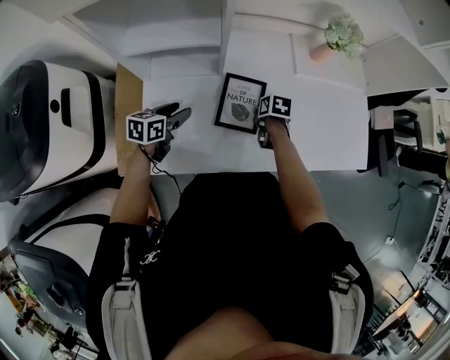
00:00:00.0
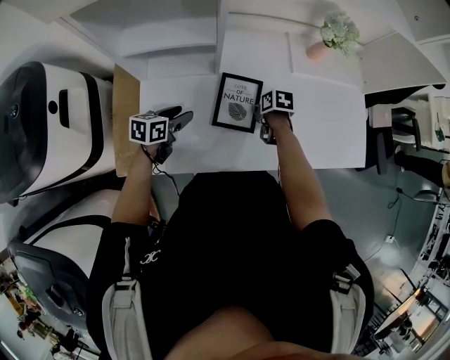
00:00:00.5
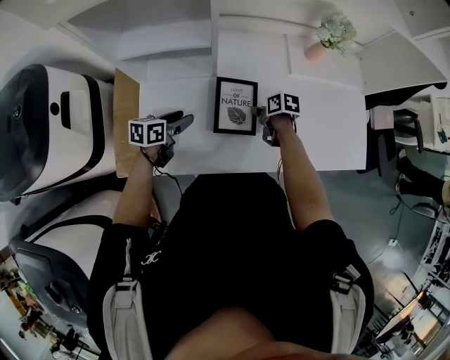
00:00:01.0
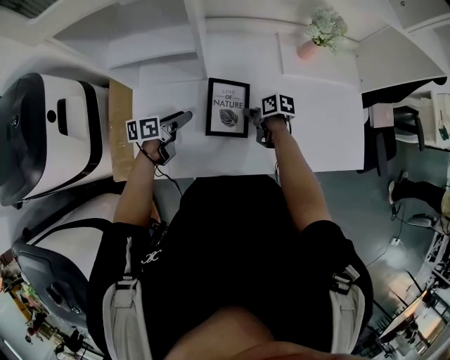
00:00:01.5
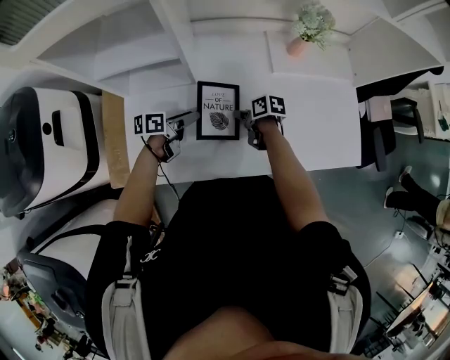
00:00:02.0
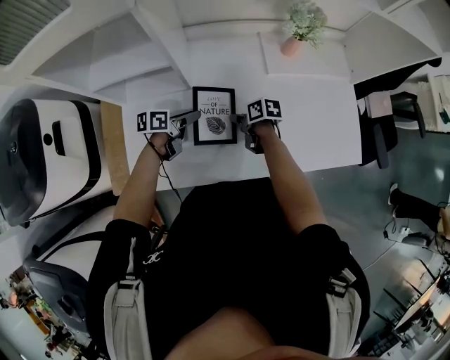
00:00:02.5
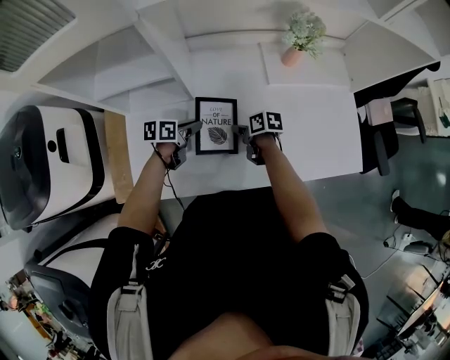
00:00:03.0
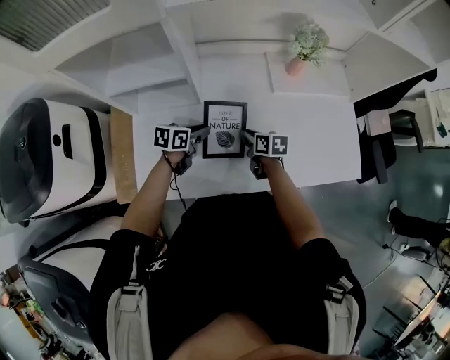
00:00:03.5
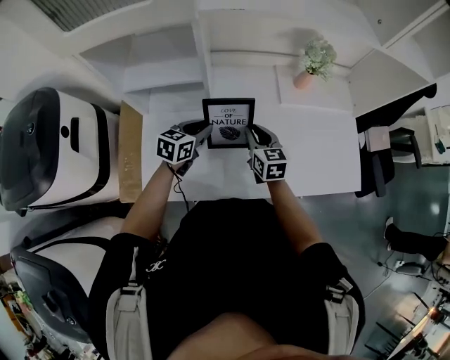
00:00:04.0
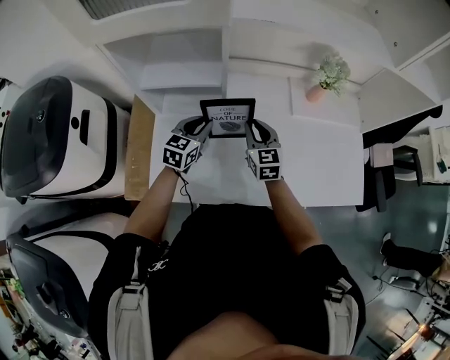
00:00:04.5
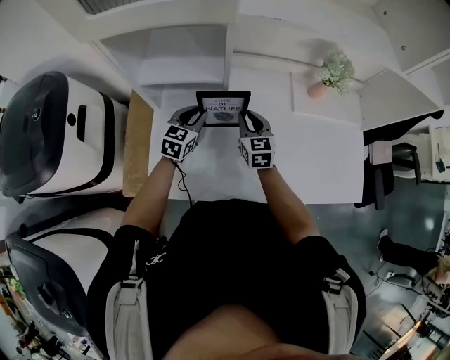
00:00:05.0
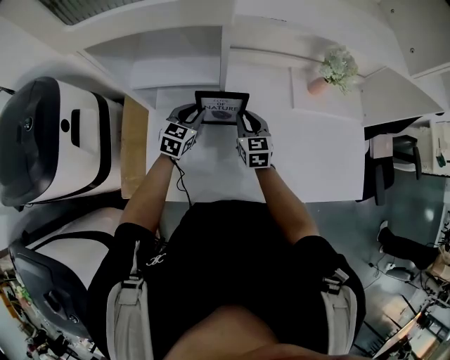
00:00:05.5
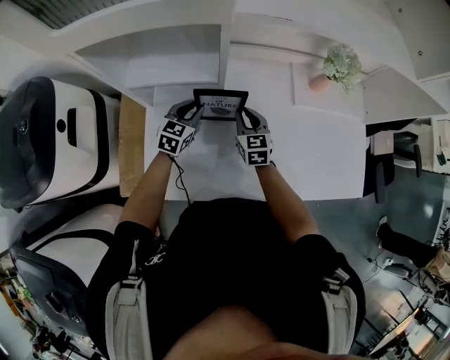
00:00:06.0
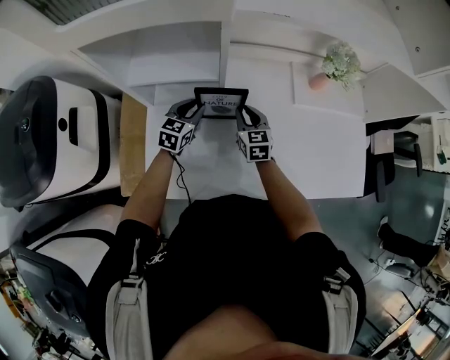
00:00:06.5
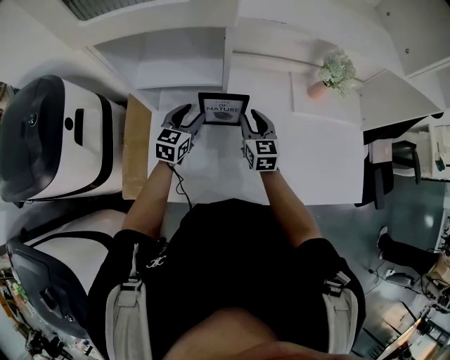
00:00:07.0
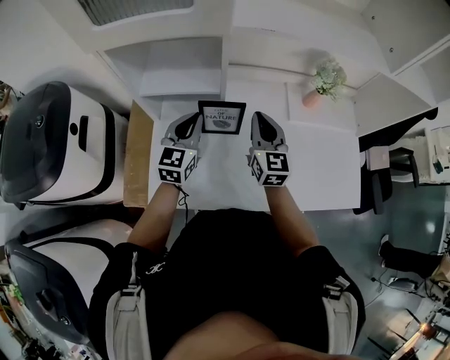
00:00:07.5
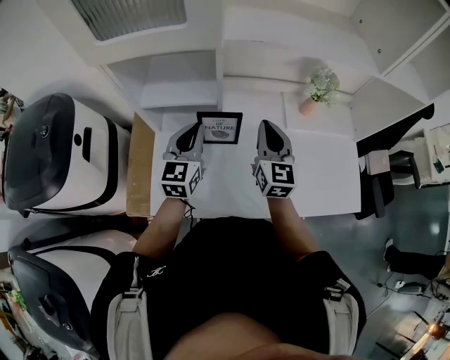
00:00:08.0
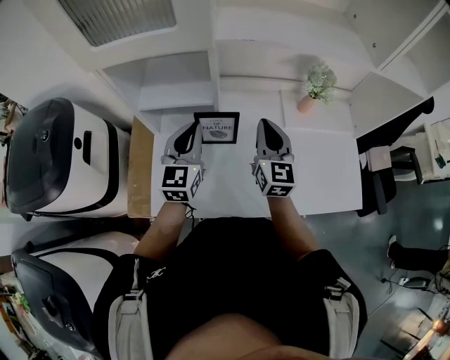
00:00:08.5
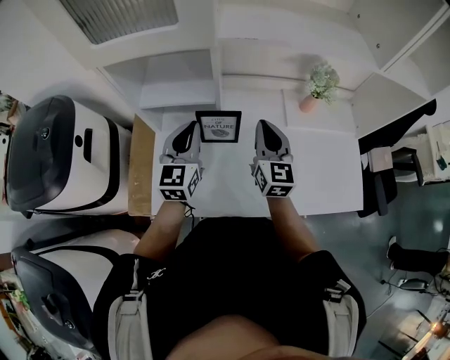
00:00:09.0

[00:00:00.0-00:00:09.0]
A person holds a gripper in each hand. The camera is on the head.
00:00:00.0 to 00:00:02.0: The right gripper changes its angle by approximately 30 degrees. The left gripper shifts some 10 cm to the right, and changes its angle by roughly 30 degrees.
00:00:02.0 to 00:00:04.5: The right gripper travels upward by roughly 15 cm, and rotates roughly 70 degrees, while the left gripper shifts some 10 cm upward, rolls clockwise, seen from behind, by some 50 degrees, and closes.
00:00:04.5 to 00:00:07.0: The left gripper opens.
00:00:07.0 to 00:00:09.0: The two grippers go roughly 15 cm upward. The left gripper swivels about 20 degrees, and closes. Meanwhile the right gripper closes its fingers.

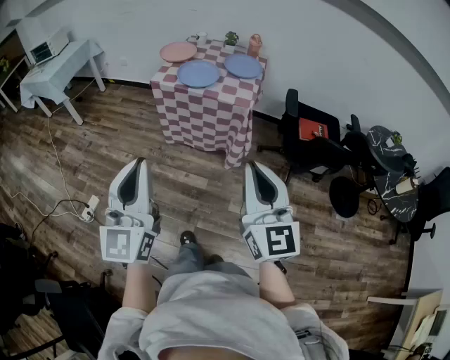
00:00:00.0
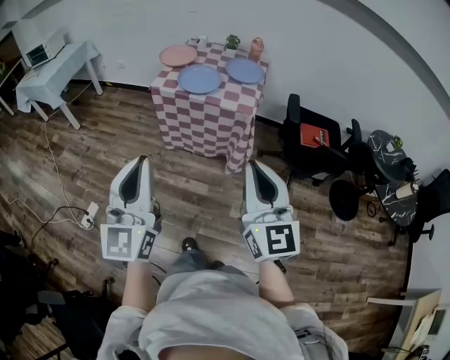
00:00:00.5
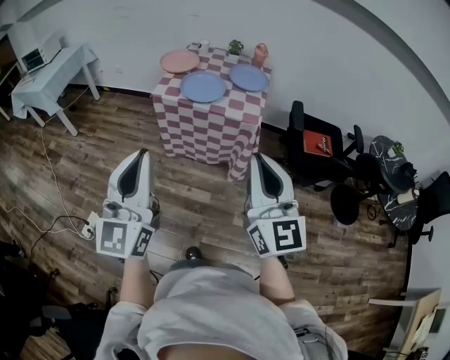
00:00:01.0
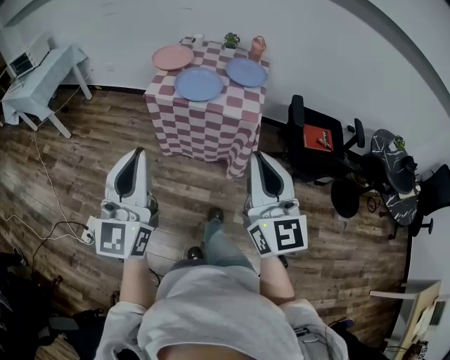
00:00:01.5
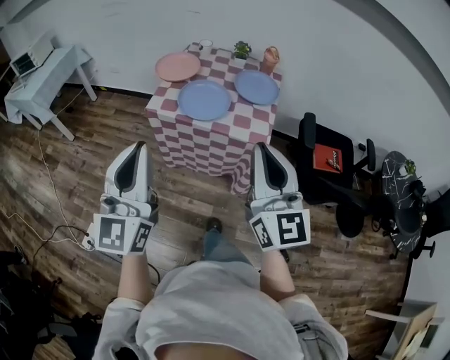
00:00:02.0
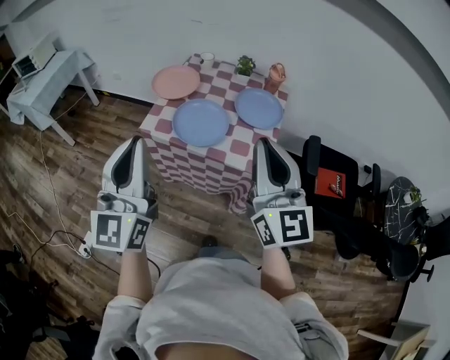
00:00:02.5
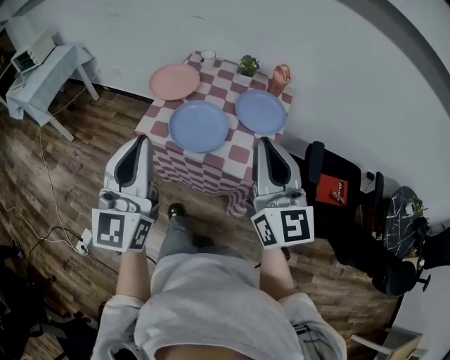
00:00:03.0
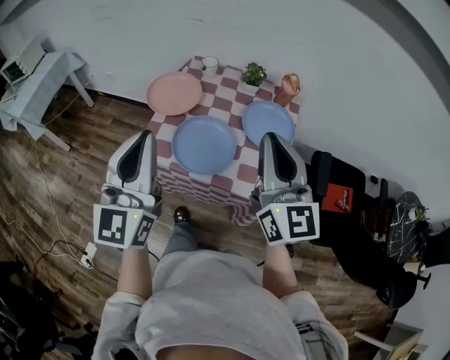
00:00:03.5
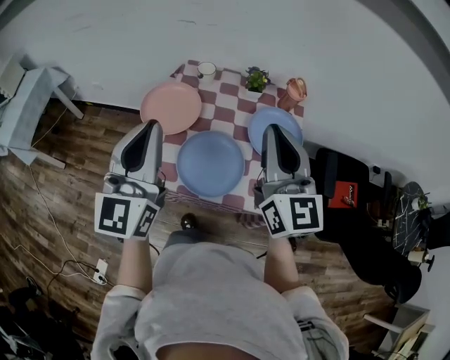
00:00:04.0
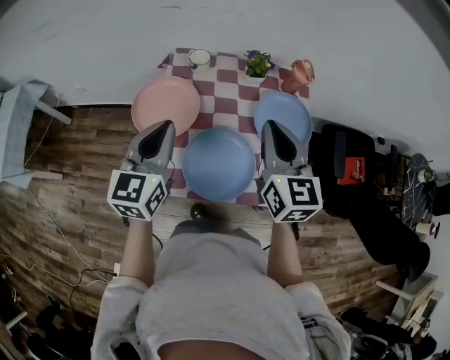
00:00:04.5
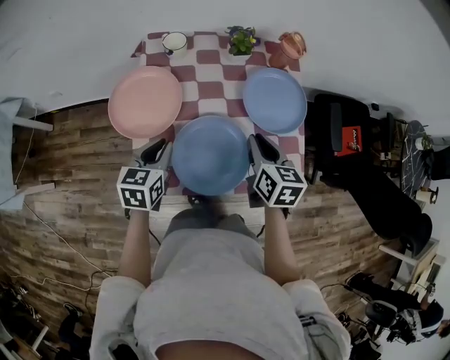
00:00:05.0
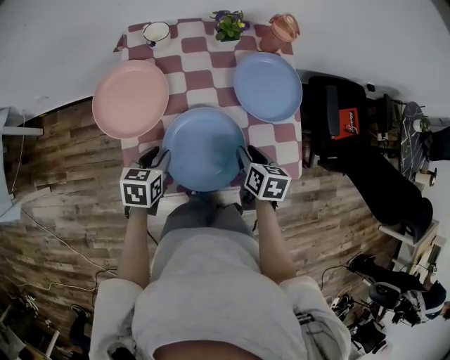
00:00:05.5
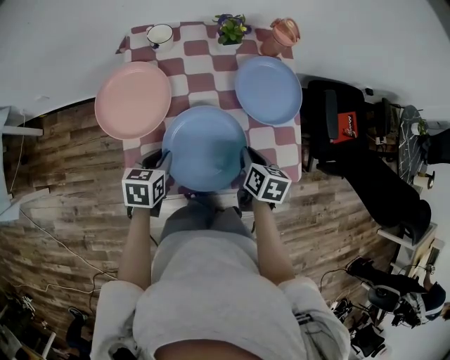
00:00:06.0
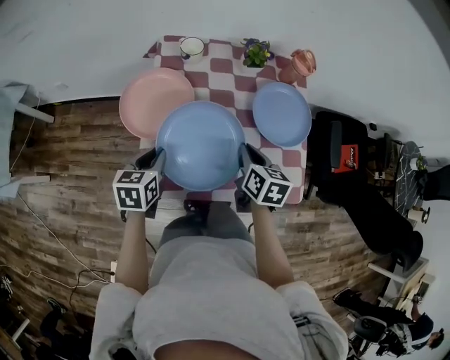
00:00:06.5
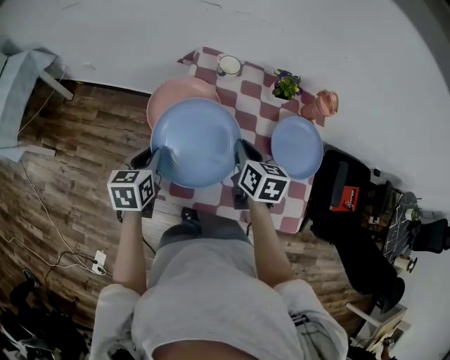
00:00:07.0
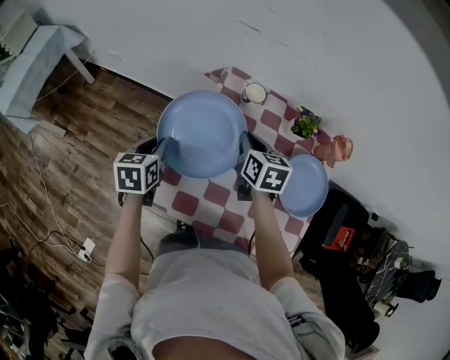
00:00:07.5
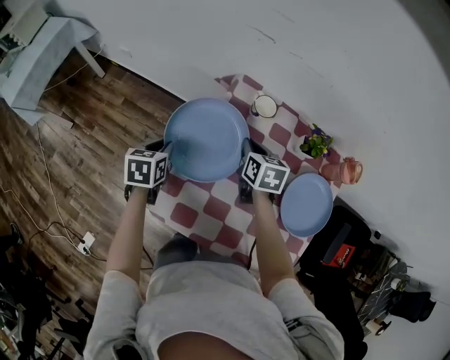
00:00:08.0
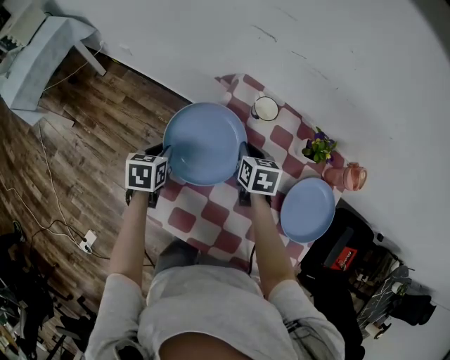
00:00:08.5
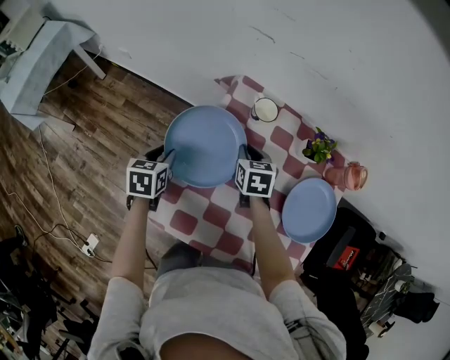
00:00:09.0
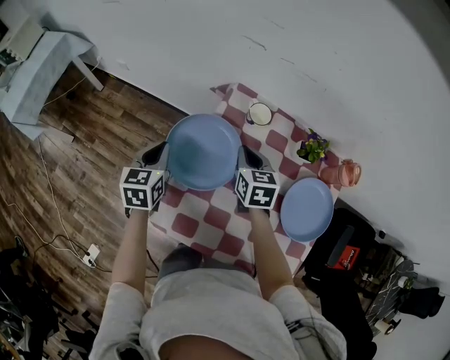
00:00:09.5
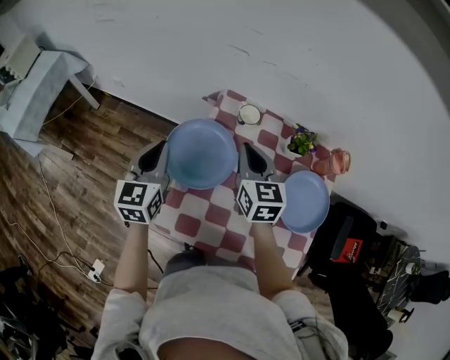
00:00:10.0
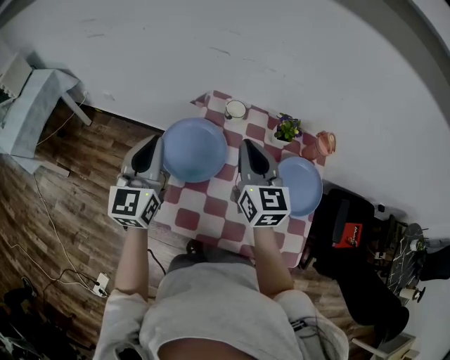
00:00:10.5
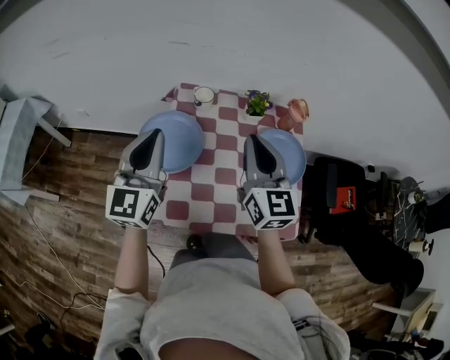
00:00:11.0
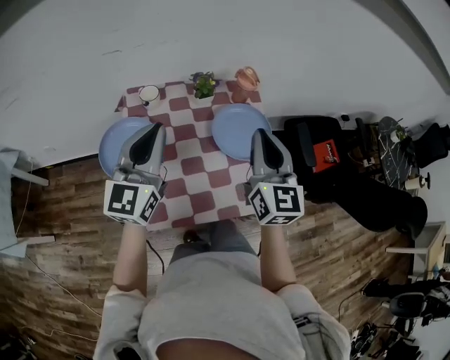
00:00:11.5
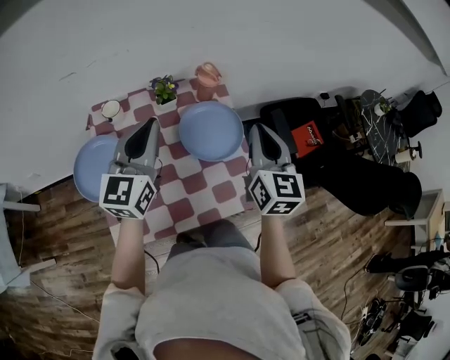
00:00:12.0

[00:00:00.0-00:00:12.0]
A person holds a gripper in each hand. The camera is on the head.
00:00:00.0 to 00:00:02.0: The two grippers go approximately 30 cm forward.
00:00:02.0 to 00:00:04.0: Both grippers travel together forward, roughly 40 cm.
00:00:04.0 to 00:00:06.0: Both grippers move downward, roughly 40 cm. The right gripper points its fingers roughly 50 degrees further downward, and opens, then closes once more; the left gripper points its fingers approximately 60 degrees further downward.
00:00:06.0 to 00:00:08.0: The left gripper shifts by about 25 cm, and swivels some 30 degrees; the right gripper ends up approximately 35 cm from where it was, and rotates roughly 40 degrees.
00:00:08.0 to 00:00:10.0: Both grippers move upward, some 15 cm. The right gripper turns by some 30 degrees; the left gripper angles its fingers upward, by approximately 30 degrees.
00:00:10.0 to 00:00:12.0: The left gripper ends up roughly 35 cm from where it was, and changes its angle by approximately 40 degrees, while the right gripper ends up approximately 40 cm from where it was, and rotates roughly 40 degrees.

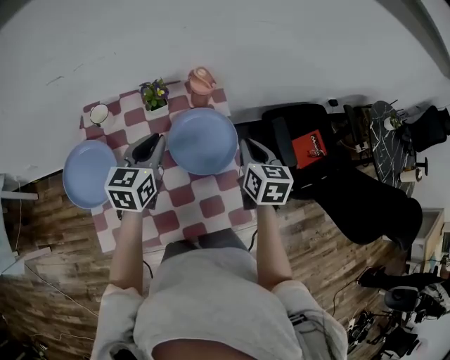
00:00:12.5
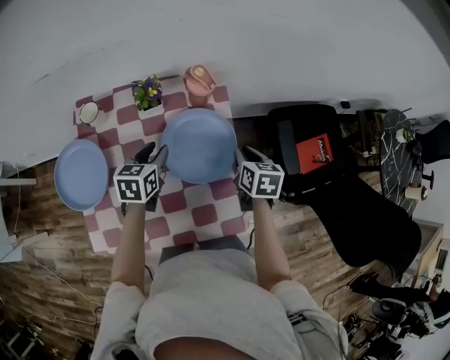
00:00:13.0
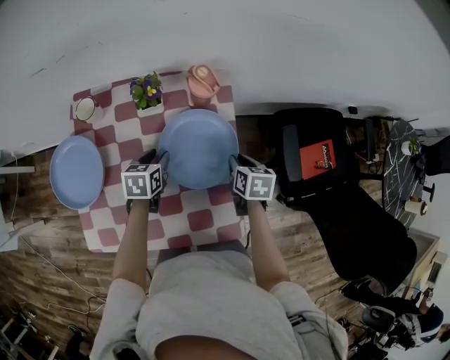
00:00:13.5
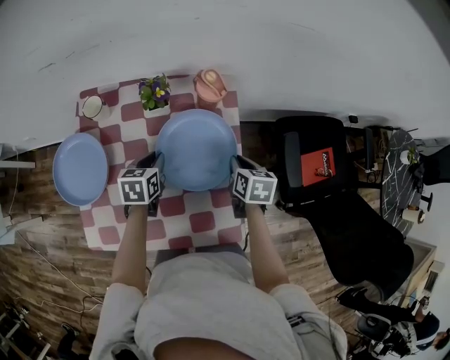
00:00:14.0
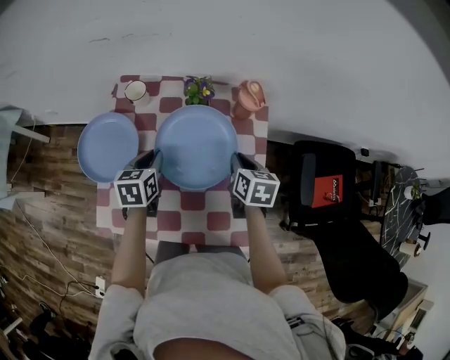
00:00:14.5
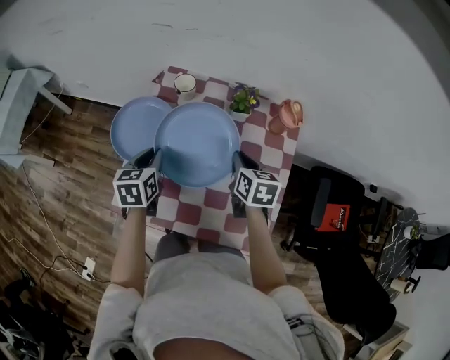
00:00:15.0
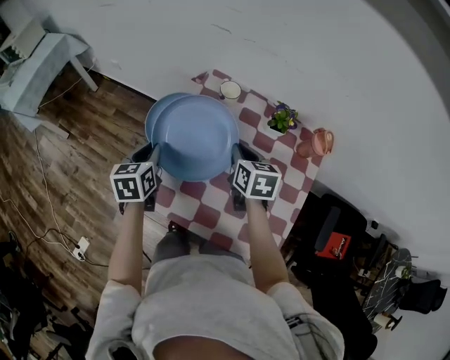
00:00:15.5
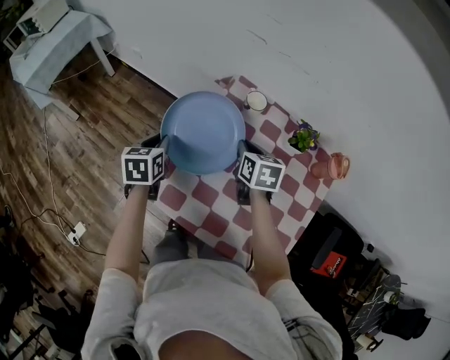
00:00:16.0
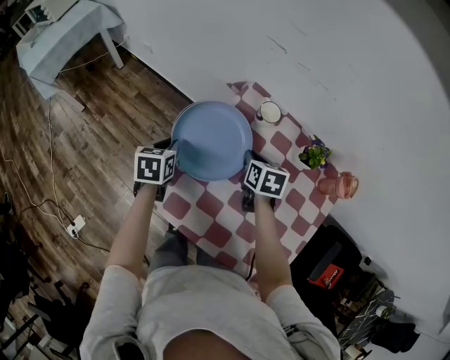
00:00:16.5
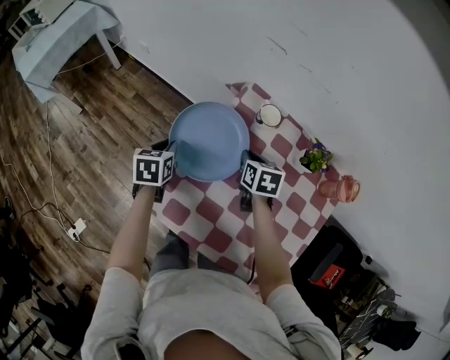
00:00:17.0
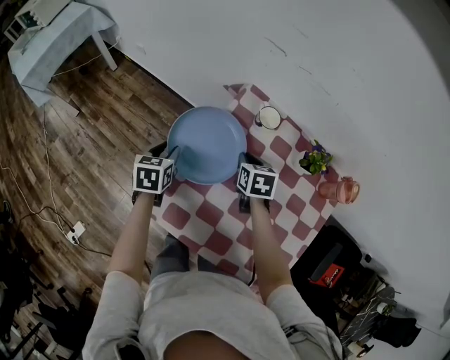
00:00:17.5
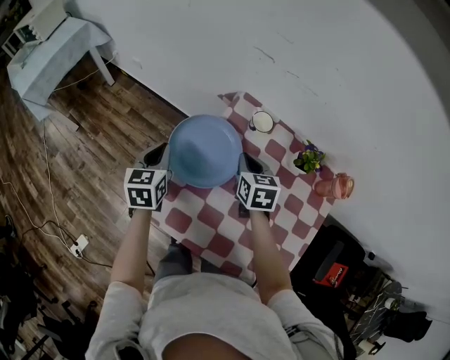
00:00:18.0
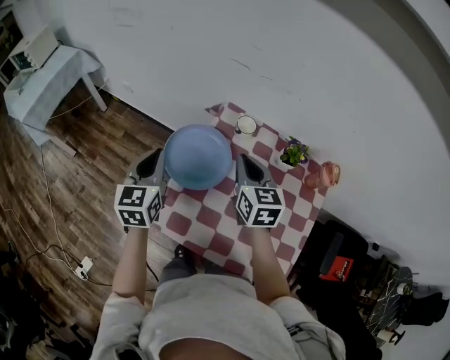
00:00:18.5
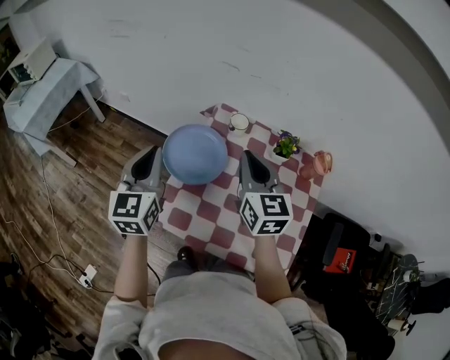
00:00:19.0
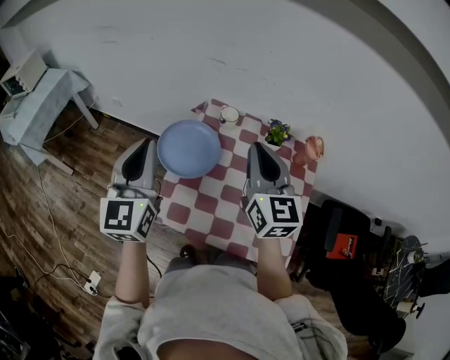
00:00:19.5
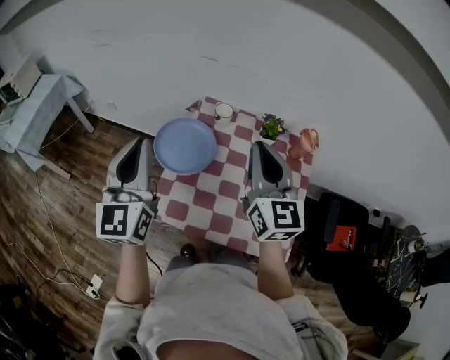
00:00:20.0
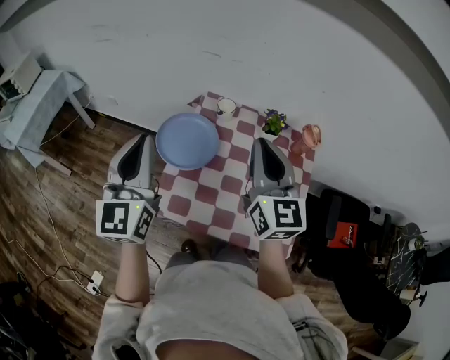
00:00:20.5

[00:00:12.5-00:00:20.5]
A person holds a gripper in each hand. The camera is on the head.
00:00:12.5 to 00:00:14.5: The left gripper travels downward and to the left by some 15 cm, swivels some 30 degrees, and opens and closes again; the right gripper shifts roughly 15 cm to the left and downward, and changes its angle by approximately 20 degrees.
00:00:14.5 to 00:00:16.5: The left gripper moves roughly 30 cm, and swivels approximately 30 degrees. The right gripper moves about 30 cm, and rotates approximately 30 degrees.
00:00:16.5 to 00:00:18.5: Both grippers move upward, about 15 cm. The right gripper rotates approximately 30 degrees. The left gripper rotates about 30 degrees.
00:00:18.5 to 00:00:20.5: Both grippers travel together upward and backward, approximately 20 cm. The left gripper changes its angle by roughly 30 degrees, while the right gripper swivels roughly 30 degrees.
